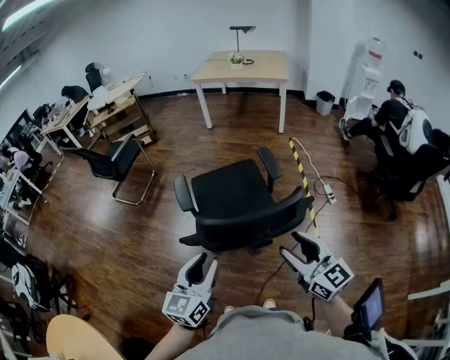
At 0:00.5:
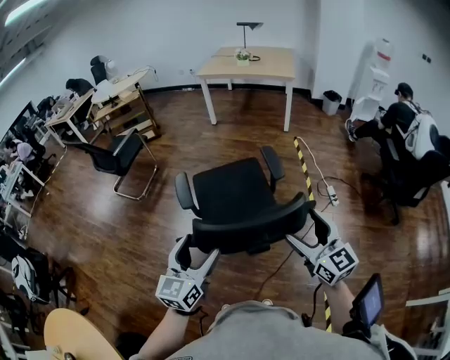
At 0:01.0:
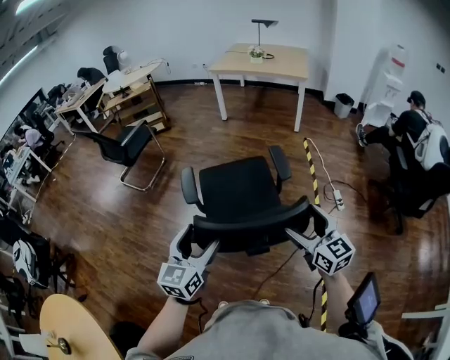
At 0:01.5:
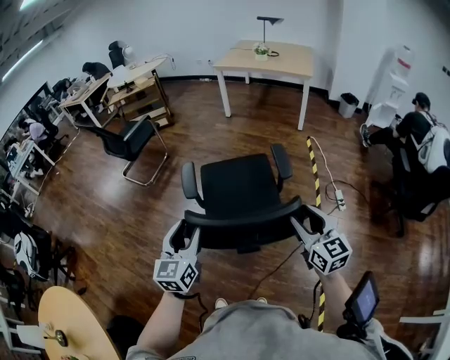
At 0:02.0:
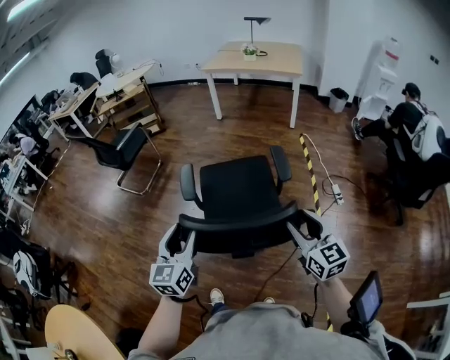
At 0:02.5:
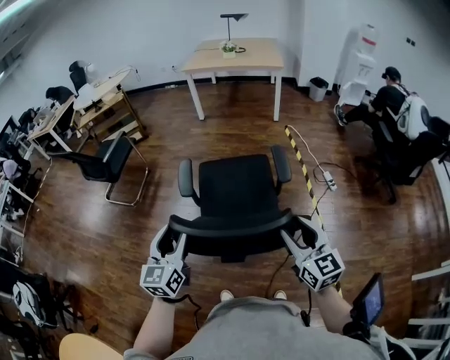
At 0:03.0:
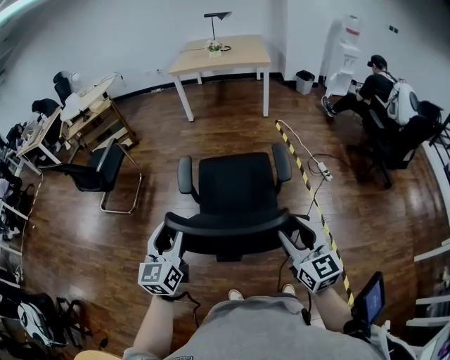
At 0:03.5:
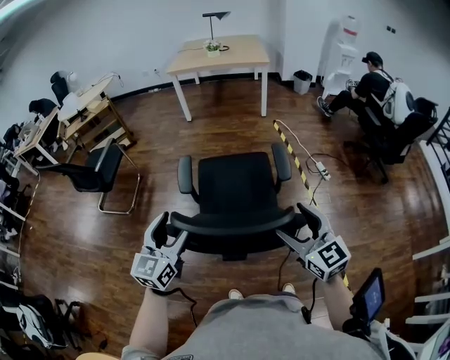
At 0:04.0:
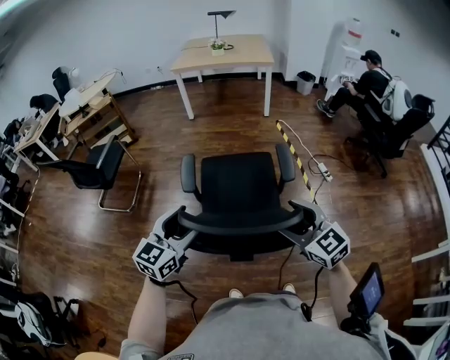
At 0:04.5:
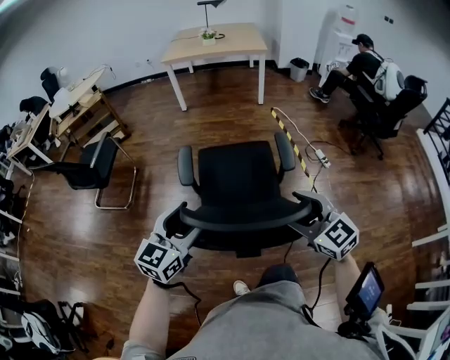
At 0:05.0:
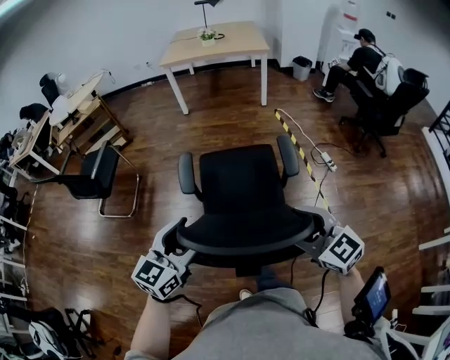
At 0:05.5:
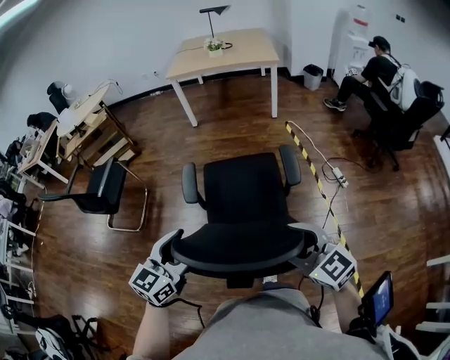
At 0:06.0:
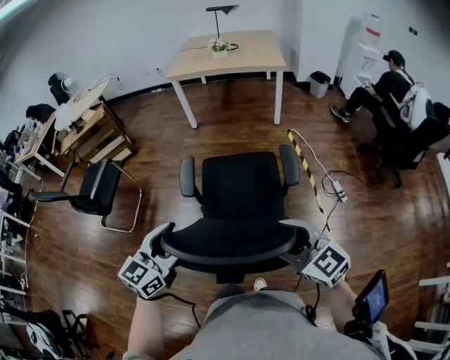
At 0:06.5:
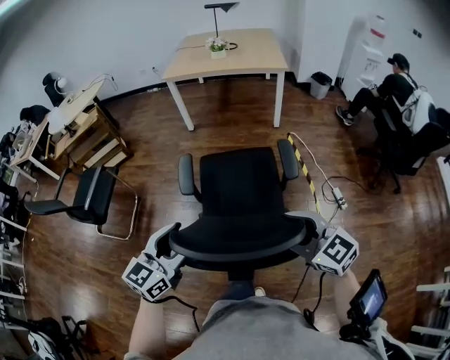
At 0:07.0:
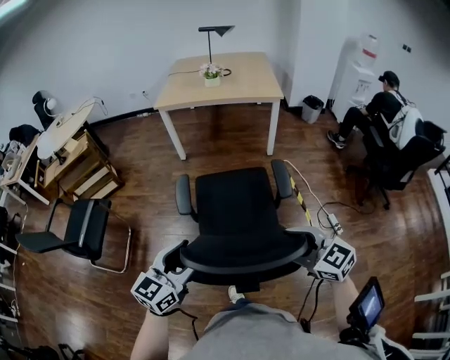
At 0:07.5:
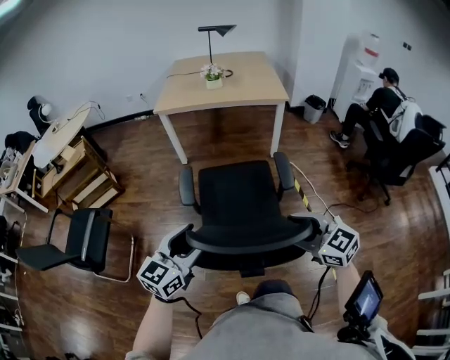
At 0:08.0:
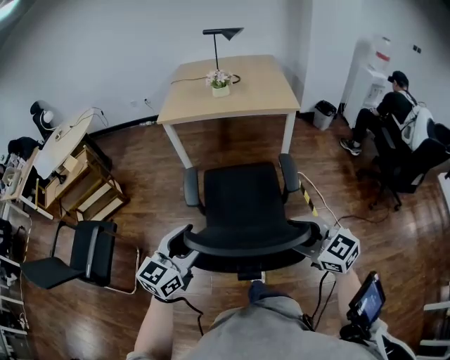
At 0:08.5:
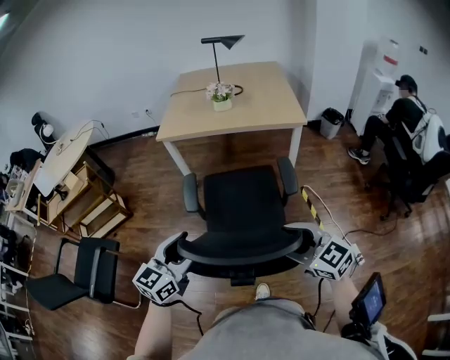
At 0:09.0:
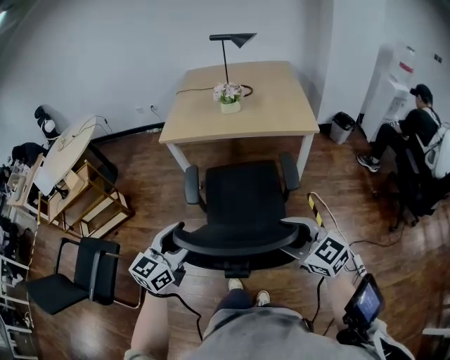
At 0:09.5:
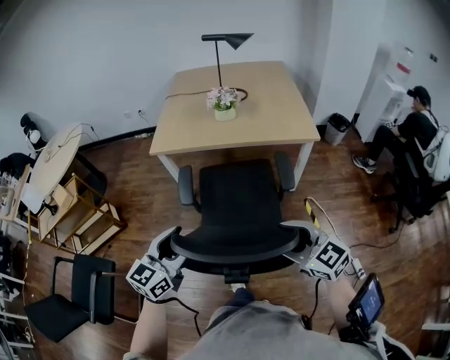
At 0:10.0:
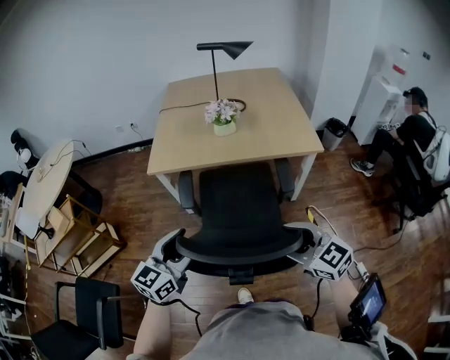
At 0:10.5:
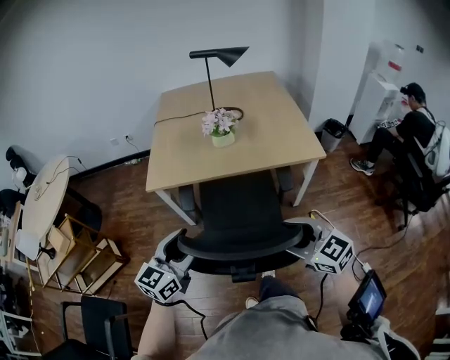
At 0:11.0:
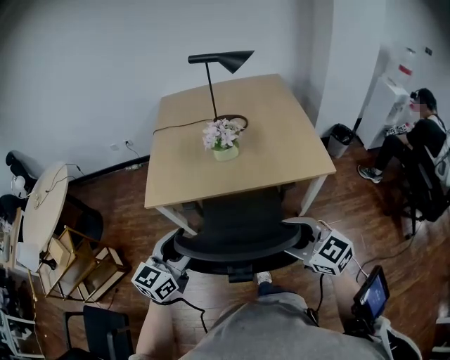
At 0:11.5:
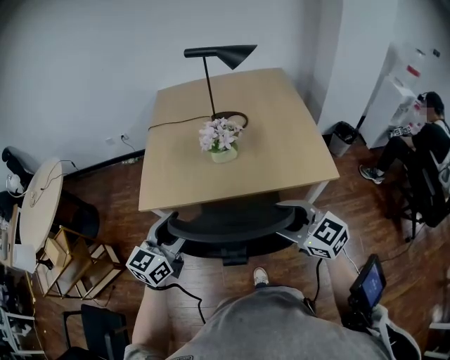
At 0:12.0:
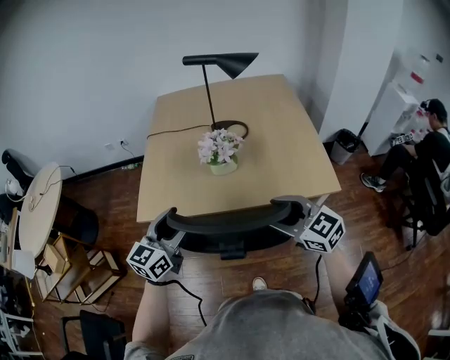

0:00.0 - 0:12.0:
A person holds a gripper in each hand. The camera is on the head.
0:00.0 - 0:02.0: The left gripper heads forward and to the left, covering about 10 cm, and opens, then closes again. The right gripper shifts approximately 10 cm forward, and opens, then closes again.
0:02.0 - 0:04.0: The right gripper moves to the left, about 15 cm, while the left gripper is displaced to the left and forward by some 10 cm, and changes its angle by roughly 40 degrees.
0:04.0 - 0:06.0: The two grippers go roughly 20 cm forward.
0:06.0 - 0:08.0: Both grippers travel together forward, some 40 cm.
0:08.0 - 0:10.0: The grippers both shift forward by about 40 cm.
0:10.0 - 0:12.0: Both grippers move forward, roughly 35 cm.

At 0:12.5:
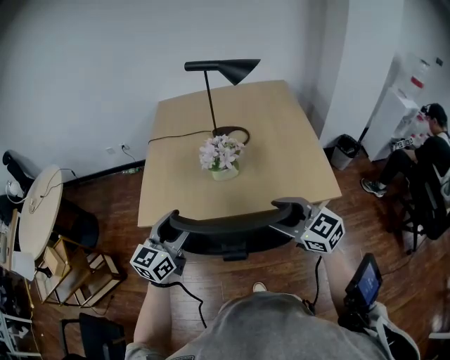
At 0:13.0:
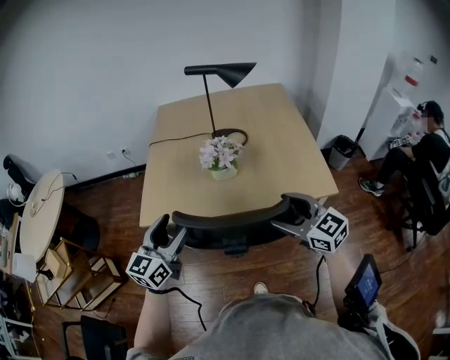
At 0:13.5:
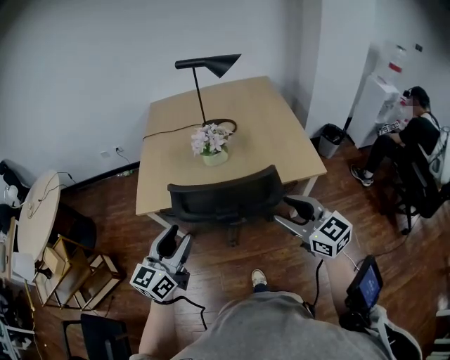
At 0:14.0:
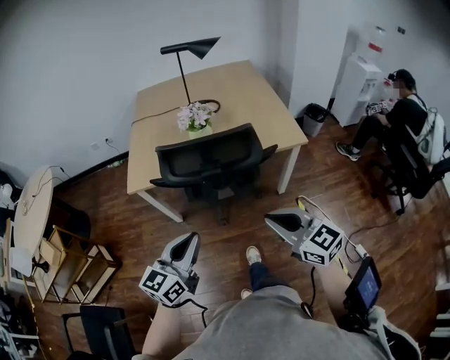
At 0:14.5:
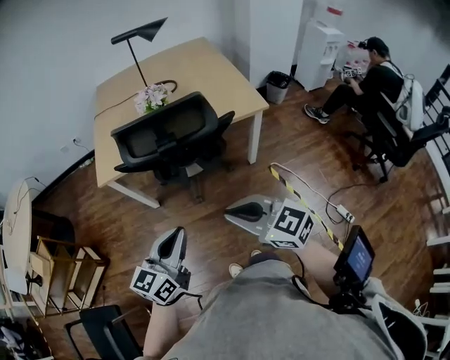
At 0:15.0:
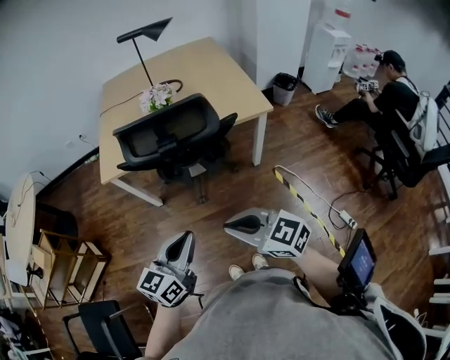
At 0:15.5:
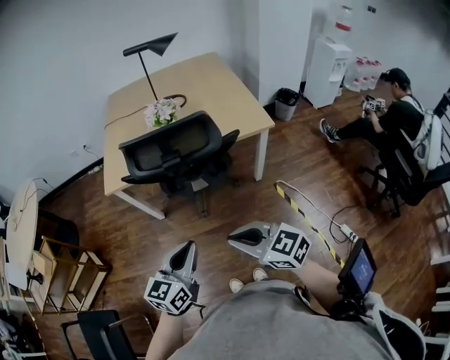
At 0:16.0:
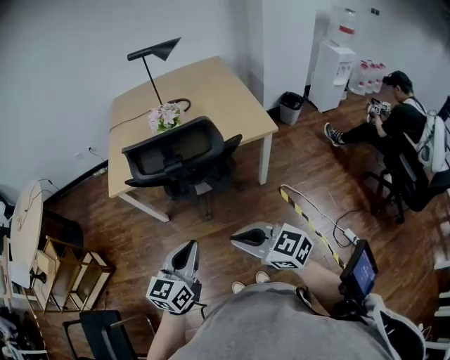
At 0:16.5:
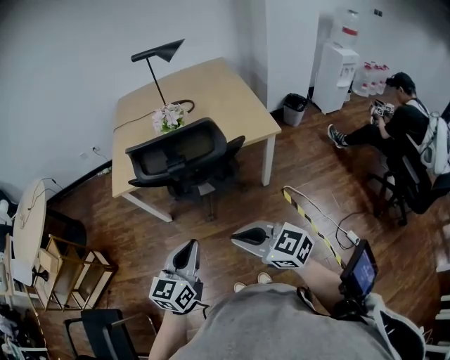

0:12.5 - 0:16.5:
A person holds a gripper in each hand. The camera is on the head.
0:12.5 - 0:14.5: Both grippers move backward, approximately 35 cm. The left gripper closes, while the right gripper closes its fingers.
0:14.5 - 0:16.5: The grippers stay close to where they were, moving slightly.

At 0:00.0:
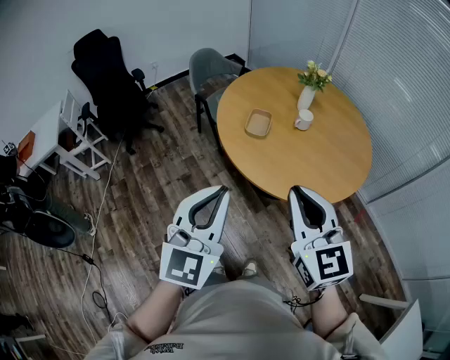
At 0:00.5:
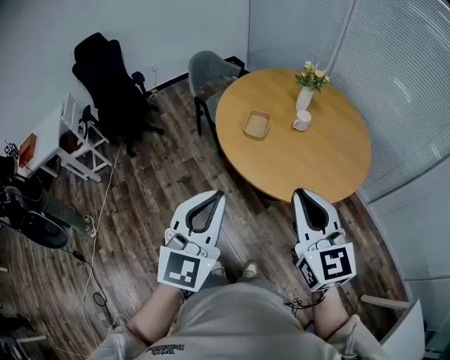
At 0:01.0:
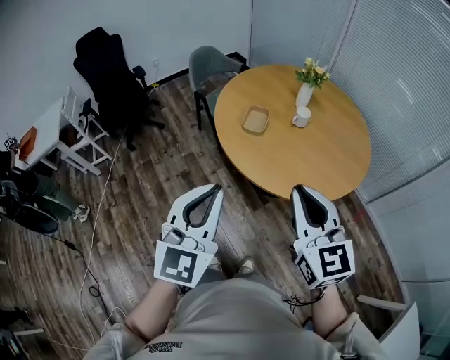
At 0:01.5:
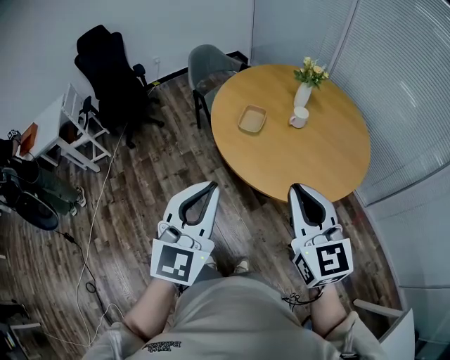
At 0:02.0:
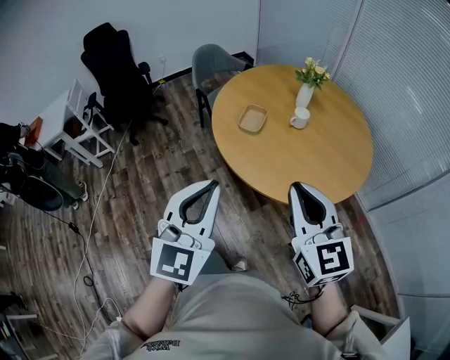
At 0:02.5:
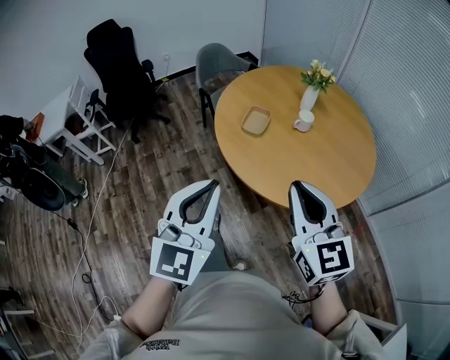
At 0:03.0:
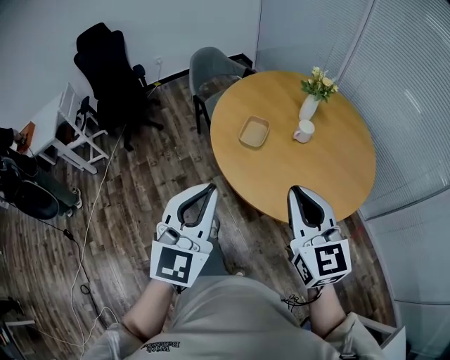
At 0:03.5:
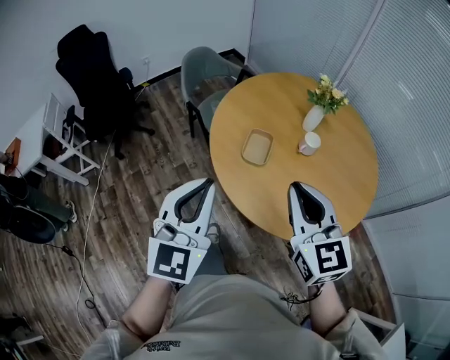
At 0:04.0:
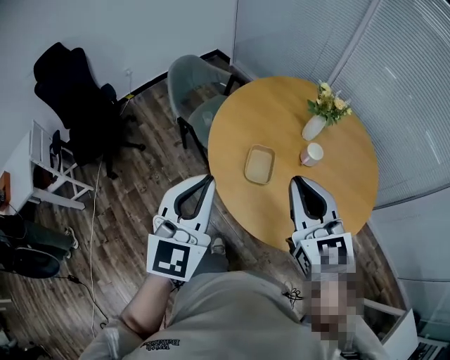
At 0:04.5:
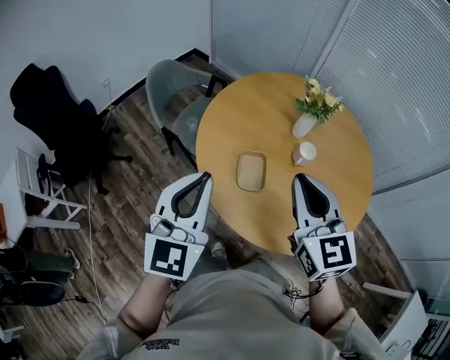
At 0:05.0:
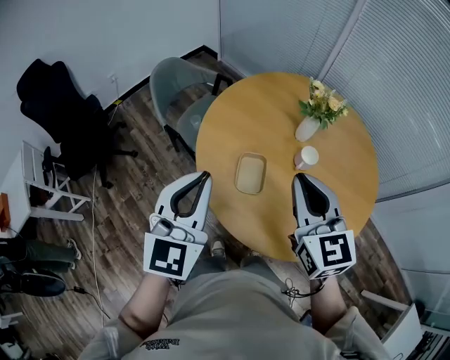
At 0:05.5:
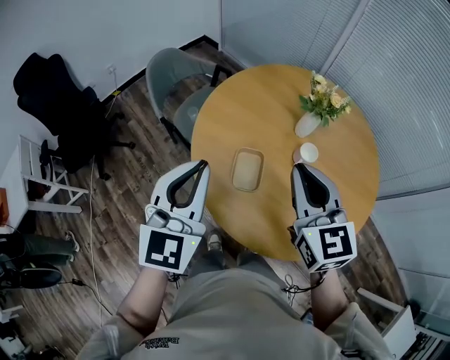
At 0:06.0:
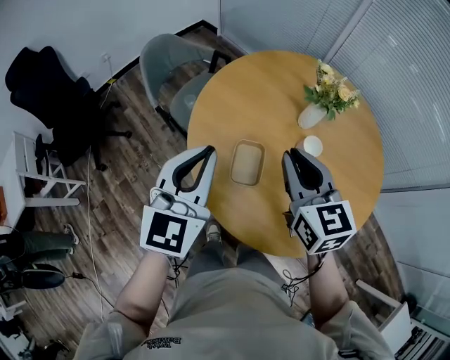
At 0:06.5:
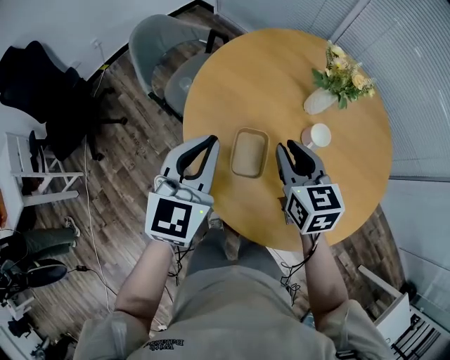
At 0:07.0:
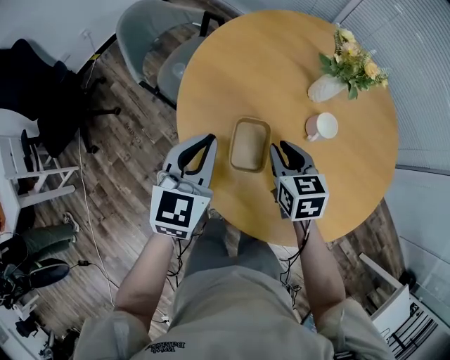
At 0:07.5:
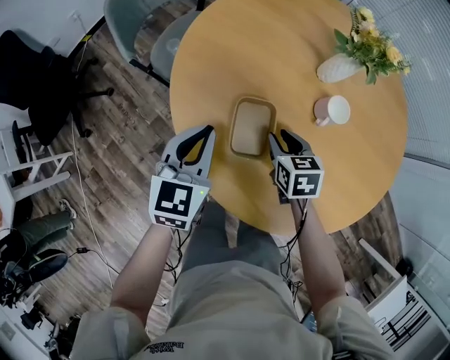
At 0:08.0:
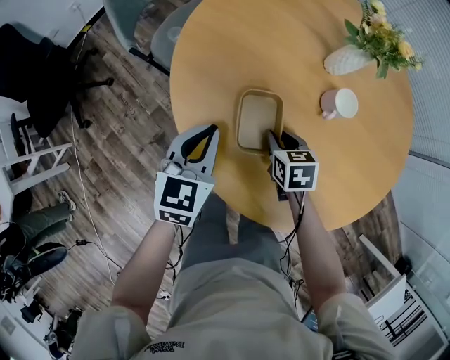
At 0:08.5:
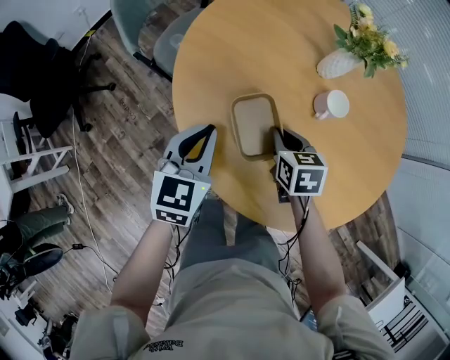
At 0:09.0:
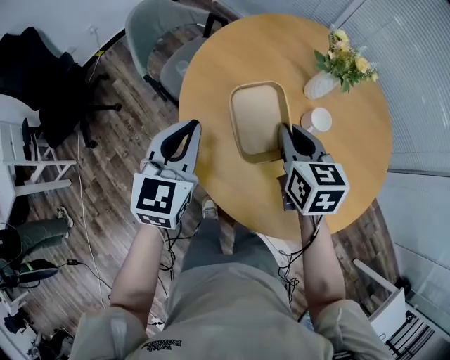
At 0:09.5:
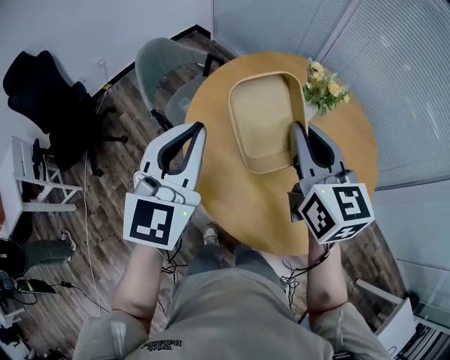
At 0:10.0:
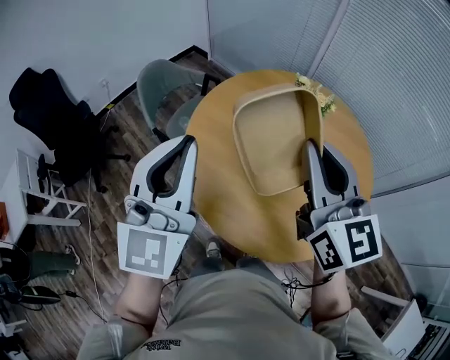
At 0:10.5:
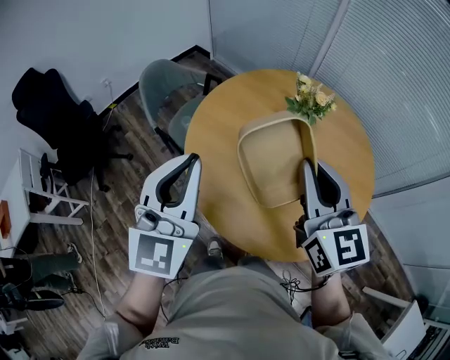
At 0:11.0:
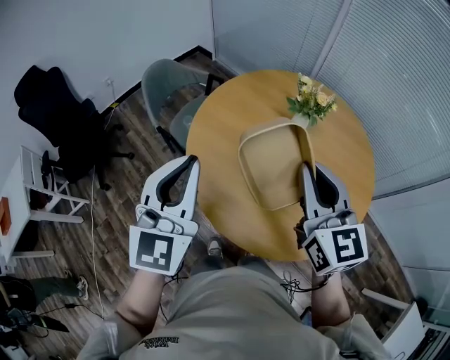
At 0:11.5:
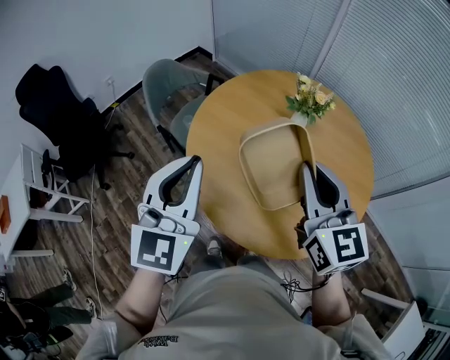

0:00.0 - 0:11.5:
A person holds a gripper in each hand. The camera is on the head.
0:00.0 - 0:02.0: The grippers both shift to the right by approximately 5 cm.
0:02.0 - 0:04.0: Both grippers move forward, roughly 30 cm.
0:04.0 - 0:06.0: The right gripper is displaced forward and downward by approximately 15 cm; the left gripper shifts roughly 15 cm forward.
0:06.0 - 0:07.5: The grippers both shift downward by some 25 cm. The right gripper angles its fingers downward, by about 30 degrees, and opens up.
0:07.5 - 0:09.5: The grippers both shift upward by about 35 cm. The right gripper tilts its fingers some 40 degrees upward, and closes; the left gripper rotates roughly 30 degrees.
0:09.5 - 0:11.5: The two grippers go roughly 10 cm backward. The left gripper reaches about 10 cm upward, then returns.
